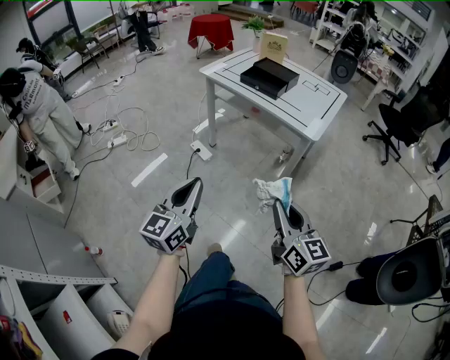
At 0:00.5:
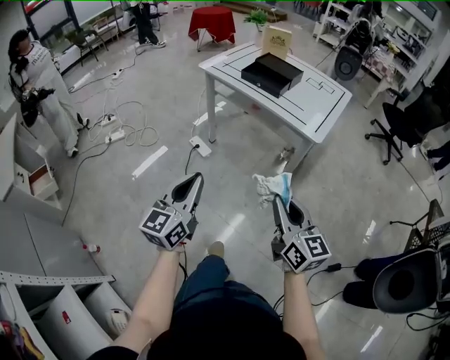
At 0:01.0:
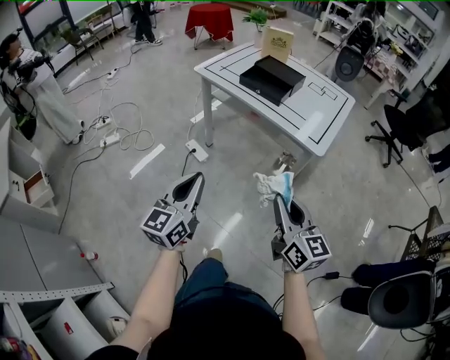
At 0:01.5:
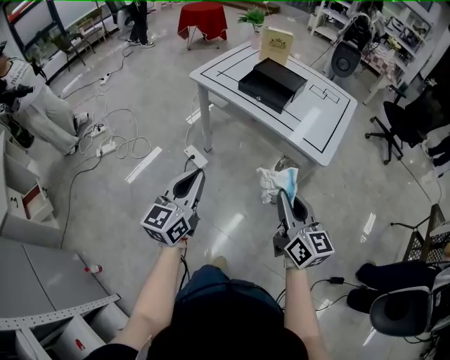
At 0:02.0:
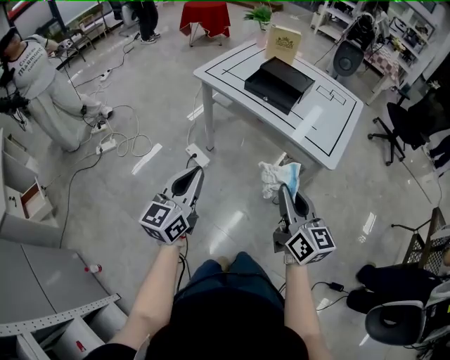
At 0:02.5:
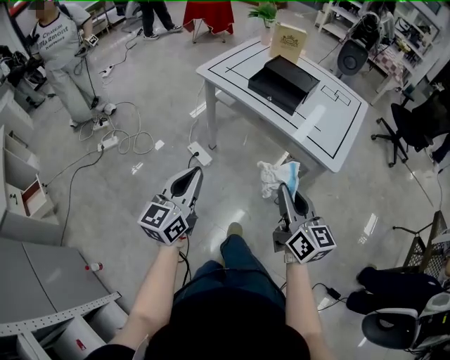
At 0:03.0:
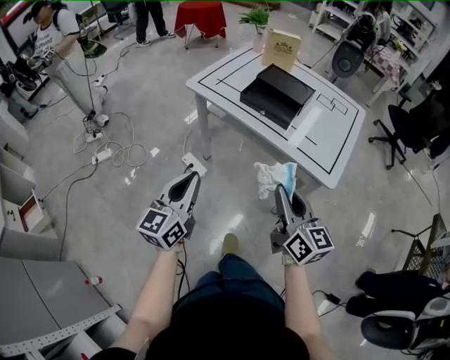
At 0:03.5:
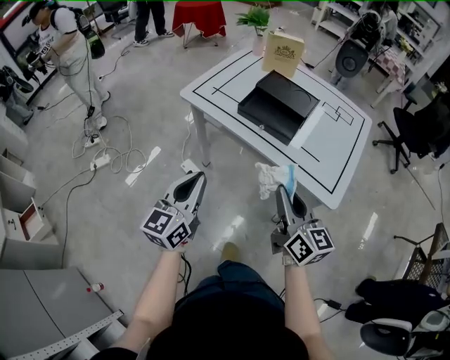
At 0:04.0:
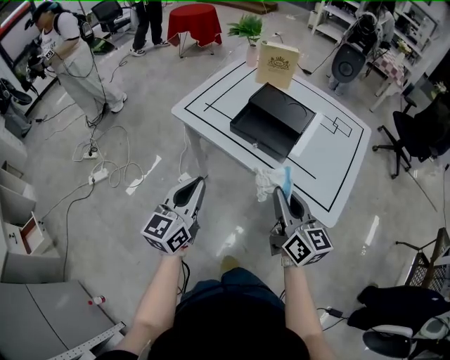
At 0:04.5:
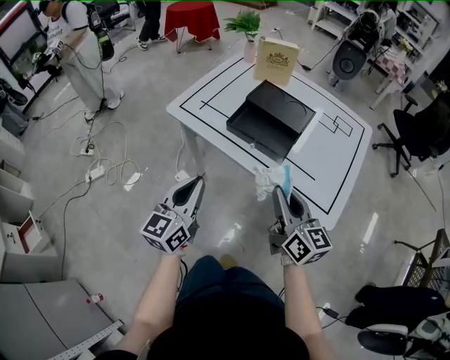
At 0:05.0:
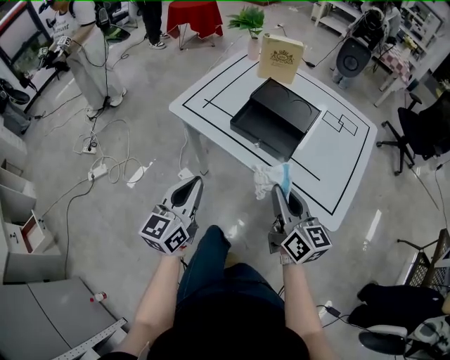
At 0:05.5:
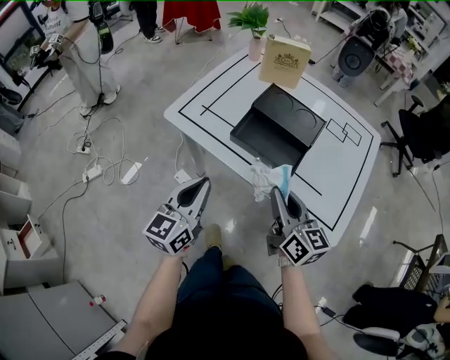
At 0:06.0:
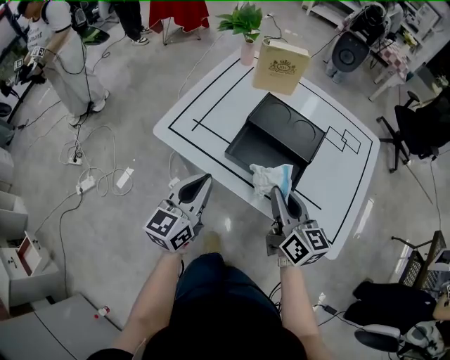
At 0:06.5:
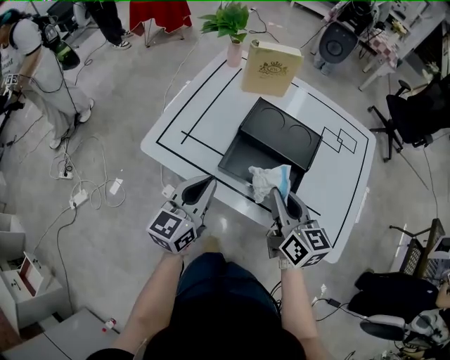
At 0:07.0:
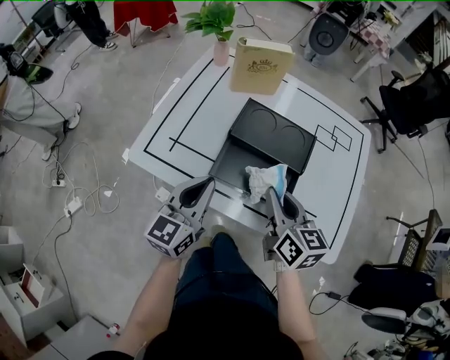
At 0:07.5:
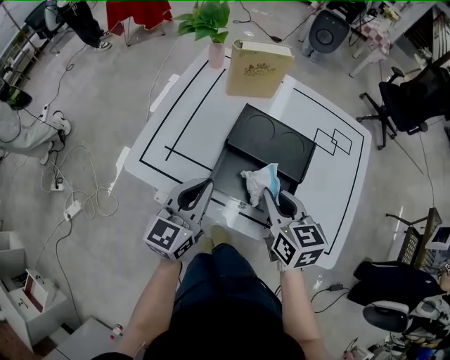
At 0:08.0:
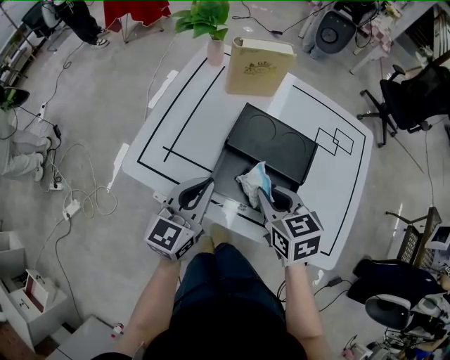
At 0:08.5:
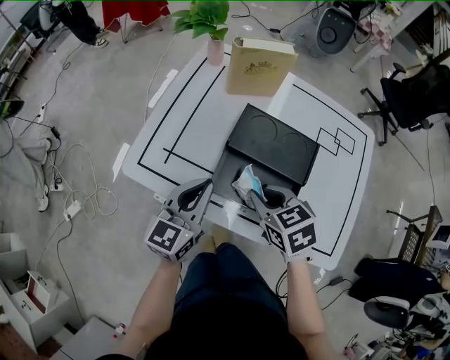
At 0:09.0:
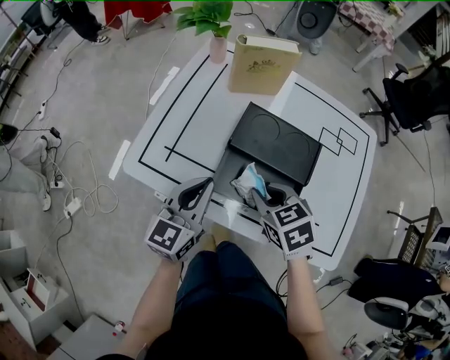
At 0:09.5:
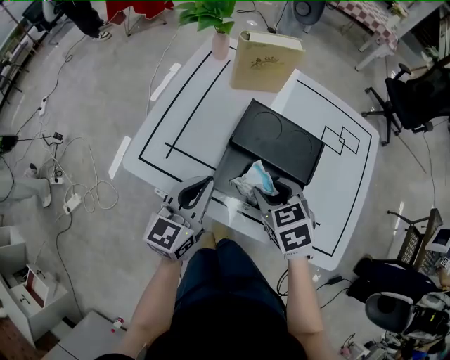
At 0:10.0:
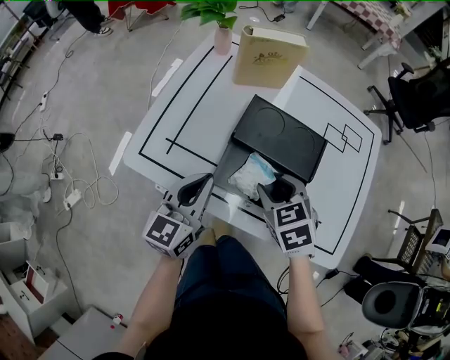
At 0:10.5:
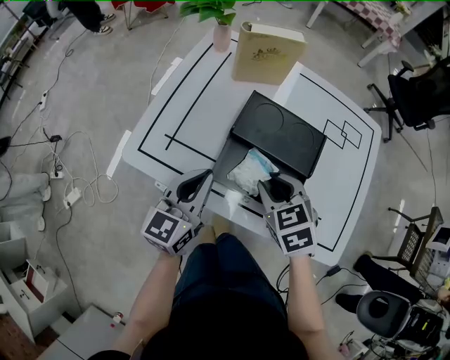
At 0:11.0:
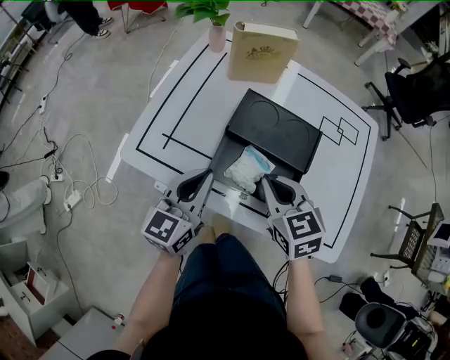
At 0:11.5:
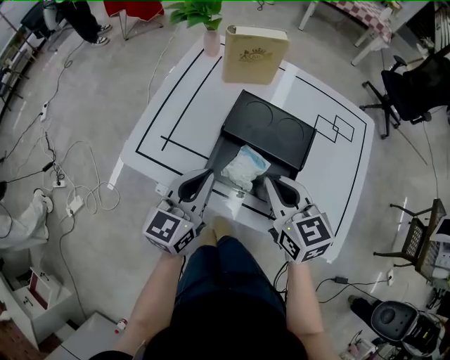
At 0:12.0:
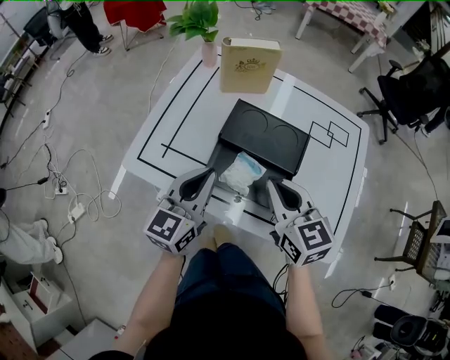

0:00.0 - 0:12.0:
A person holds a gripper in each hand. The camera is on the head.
0:00.0 - 0:02.0: The two grippers go some 25 cm forward.
0:02.0 - 0:04.0: The two grippers go roughly 25 cm forward.
0:04.0 - 0:06.0: Both grippers move forward, some 15 cm.
0:06.0 - 0:08.0: Both grippers move forward, some 10 cm. The right gripper tips its fingers downward by roughly 30 degrees.
0:08.0 - 0:10.0: The right gripper opens up.
0:10.0 - 0:12.0: The right gripper travels upward by some 10 cm, tilts its fingers approximately 30 degrees upward, and closes; the left gripper travels upward by approximately 5 cm.

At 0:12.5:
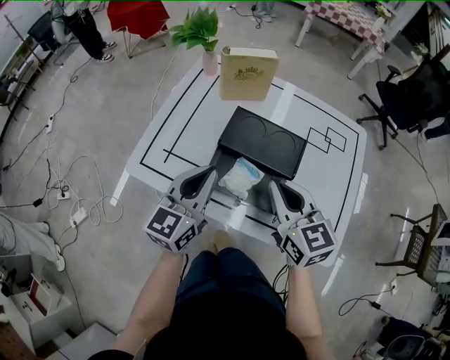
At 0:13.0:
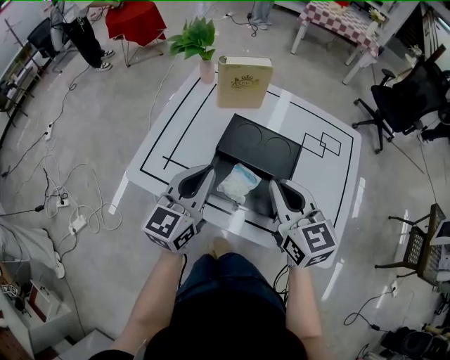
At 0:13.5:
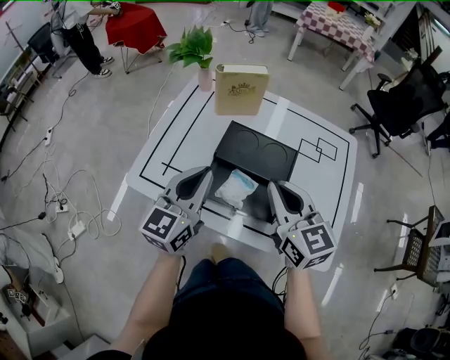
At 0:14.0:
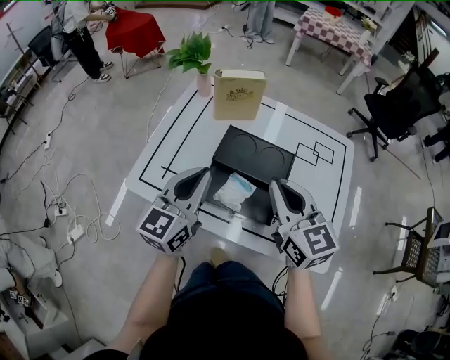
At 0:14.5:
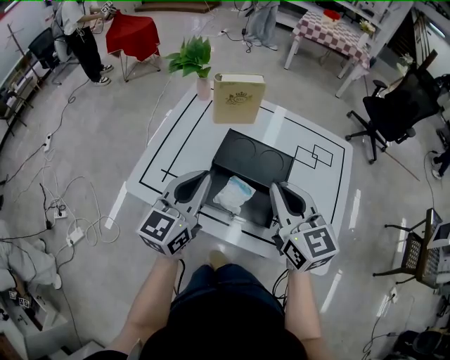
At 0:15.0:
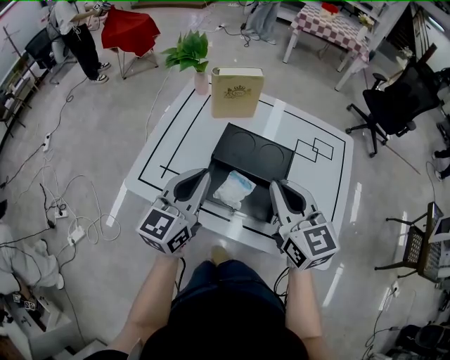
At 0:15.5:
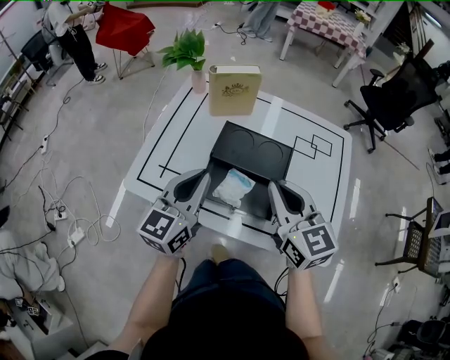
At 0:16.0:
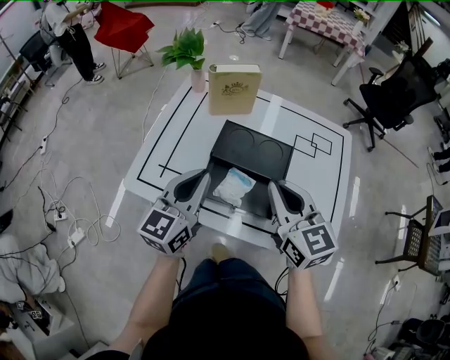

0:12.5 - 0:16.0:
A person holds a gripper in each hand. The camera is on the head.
0:12.5 - 0:14.5: The grippers both shift upward by about 5 cm.
0:14.5 - 0:16.0: The grippers make only small movements.

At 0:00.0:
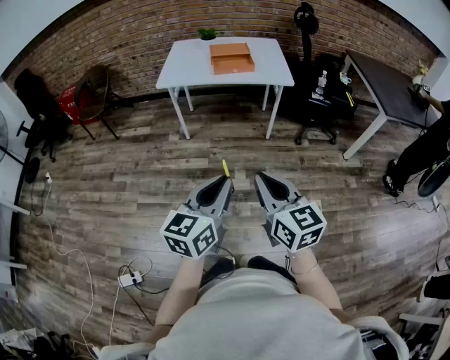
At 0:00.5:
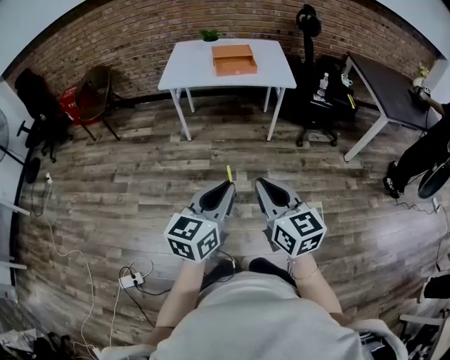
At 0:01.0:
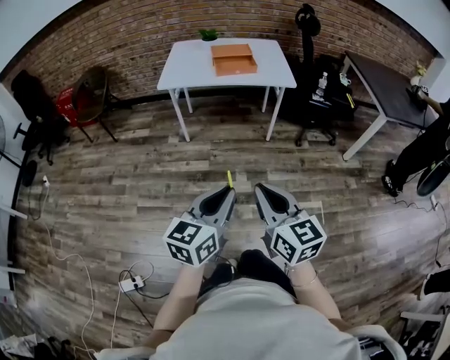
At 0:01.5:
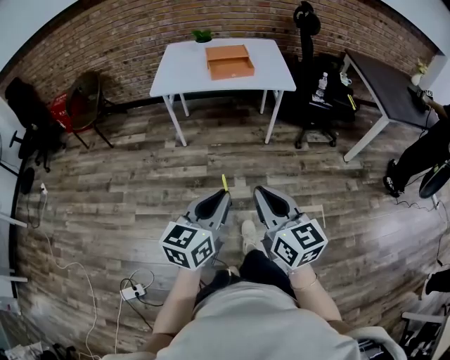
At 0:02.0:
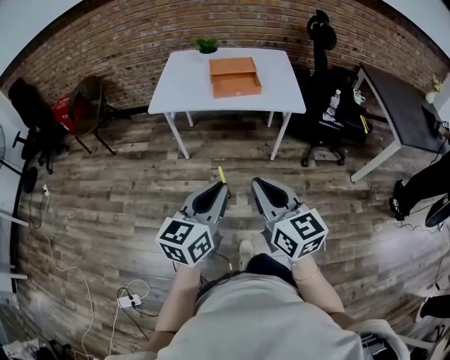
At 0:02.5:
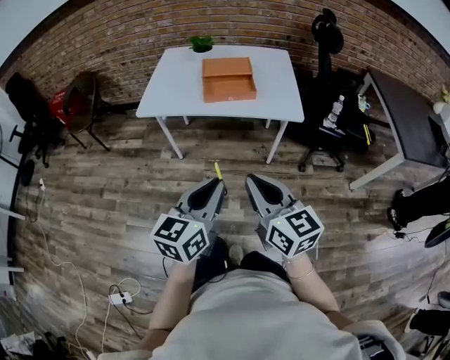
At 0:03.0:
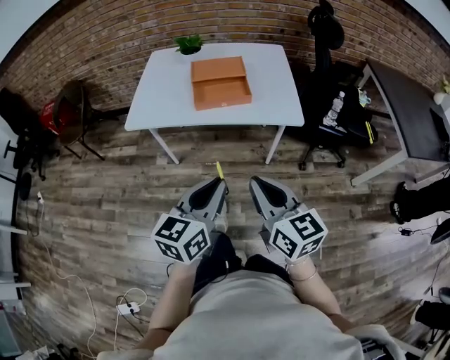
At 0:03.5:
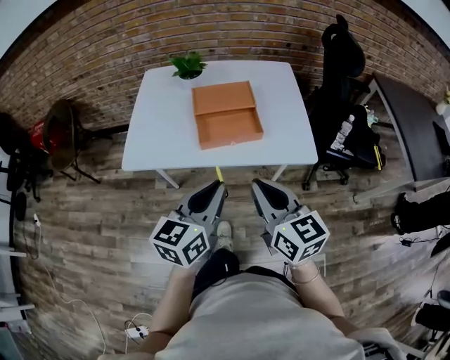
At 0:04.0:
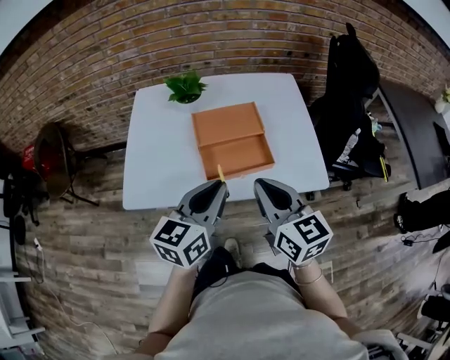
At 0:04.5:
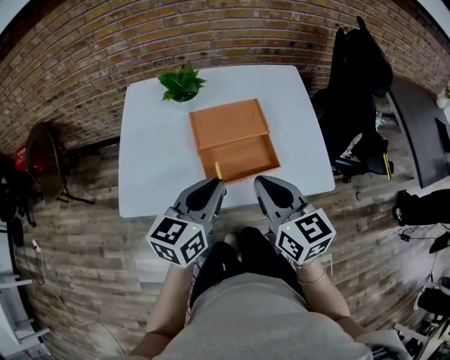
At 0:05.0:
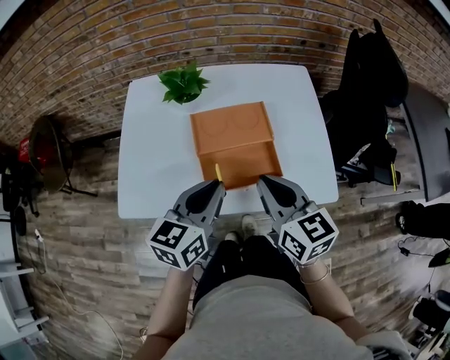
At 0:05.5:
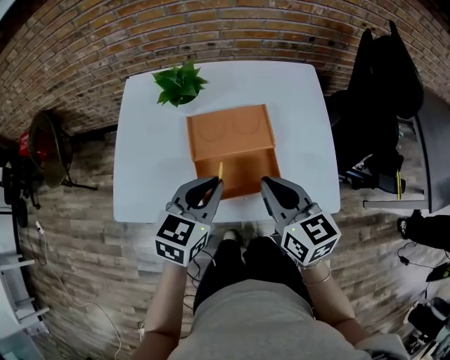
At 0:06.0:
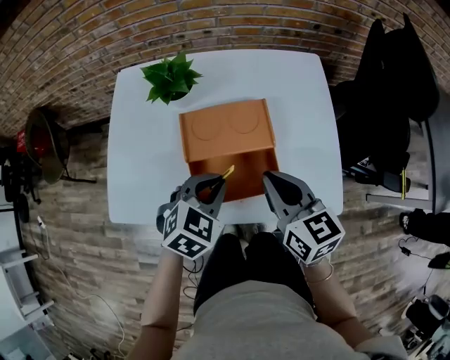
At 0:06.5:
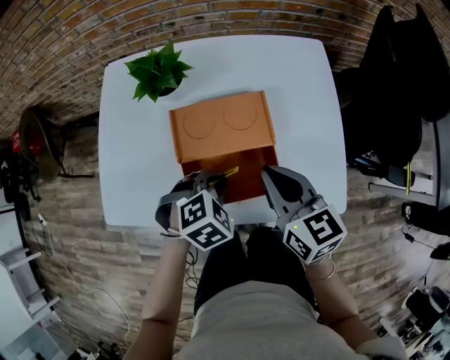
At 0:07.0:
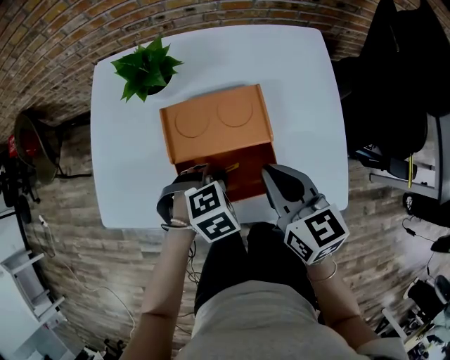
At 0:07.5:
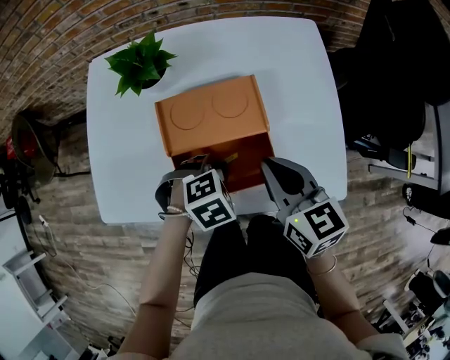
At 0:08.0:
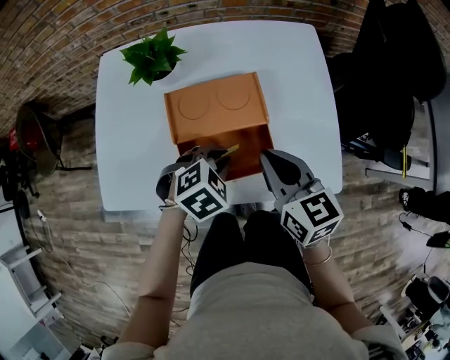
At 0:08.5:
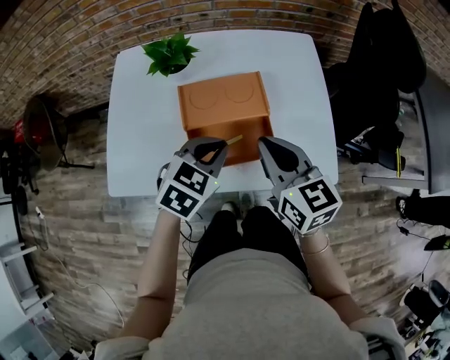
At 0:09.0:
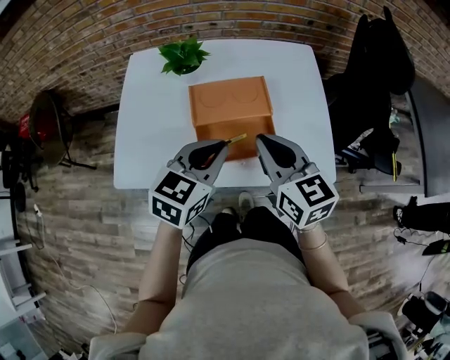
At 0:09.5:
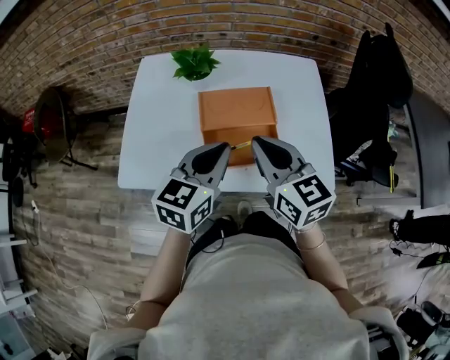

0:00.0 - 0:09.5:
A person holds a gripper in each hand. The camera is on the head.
0:00.0 - 0:02.0: Both grippers move forward, about 20 cm.
0:02.0 - 0:04.0: The two grippers travel together, forward, roughly 50 cm.
0:04.0 - 0:05.5: Both grippers travel together forward and downward, some 15 cm.
0:05.5 - 0:07.5: The right gripper heads downward, covering some 5 cm; the left gripper moves downward, about 15 cm, and angles its fingers downward, by roughly 40 degrees.
0:07.5 - 0:09.5: The right gripper heads upward, backward and to the left, covering approximately 15 cm. Meanwhile the left gripper goes approximately 20 cm upward, and angles its fingers upward, by some 60 degrees.

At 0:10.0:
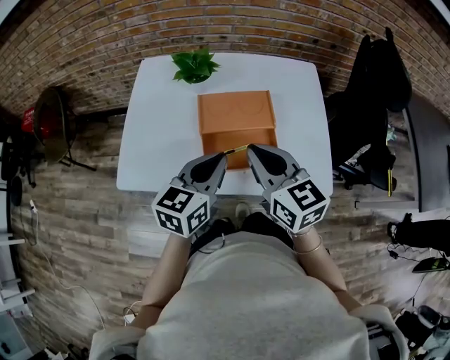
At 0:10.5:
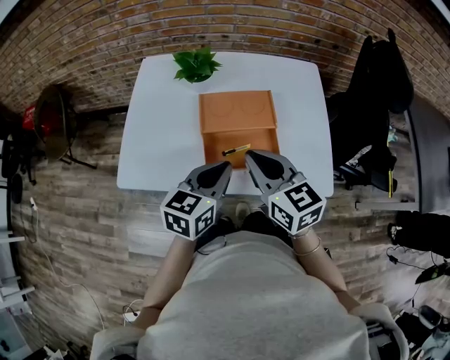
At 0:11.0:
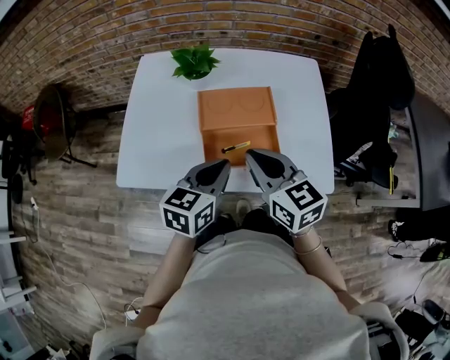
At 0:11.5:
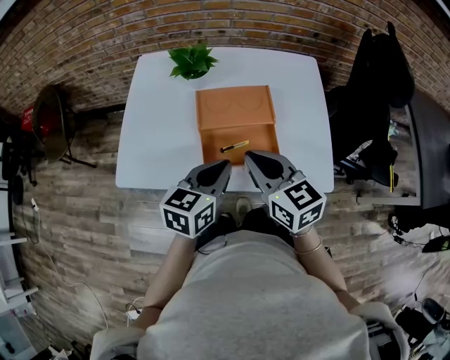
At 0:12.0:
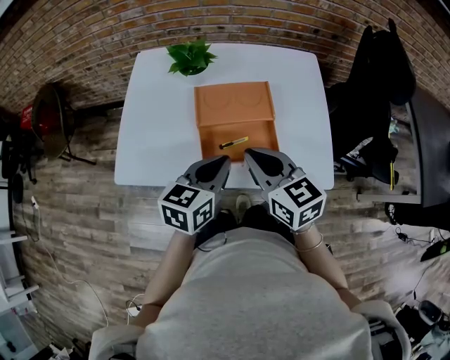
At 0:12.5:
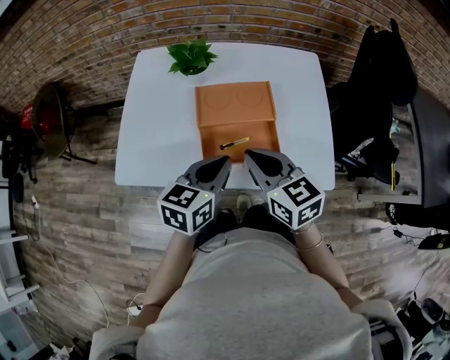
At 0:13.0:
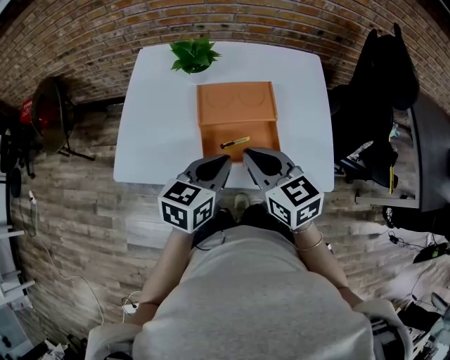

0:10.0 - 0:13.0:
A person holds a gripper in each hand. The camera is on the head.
0:10.0 - 0:11.5: The grippers stay close to where they were, moving slightly.
0:11.5 - 0:13.0: Both grippers stay about where they are.
